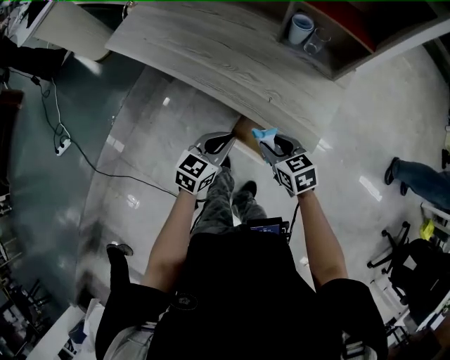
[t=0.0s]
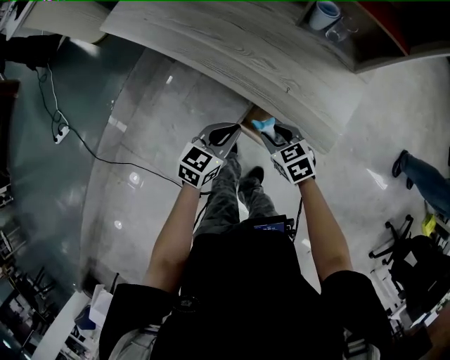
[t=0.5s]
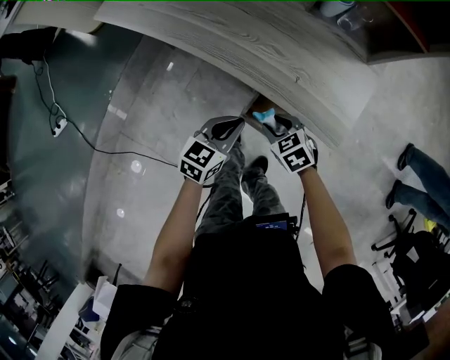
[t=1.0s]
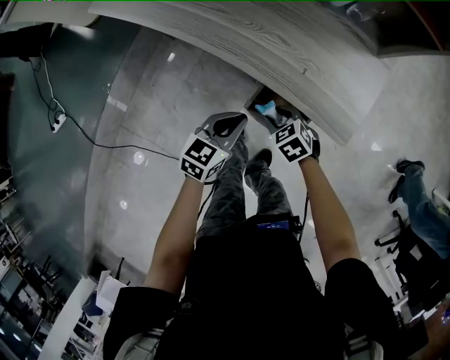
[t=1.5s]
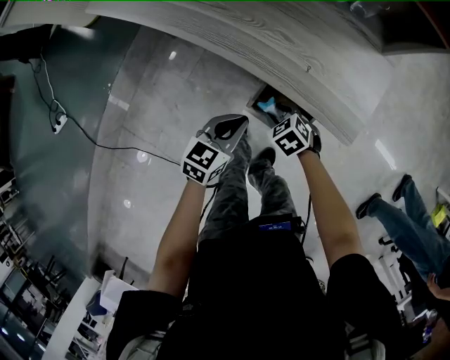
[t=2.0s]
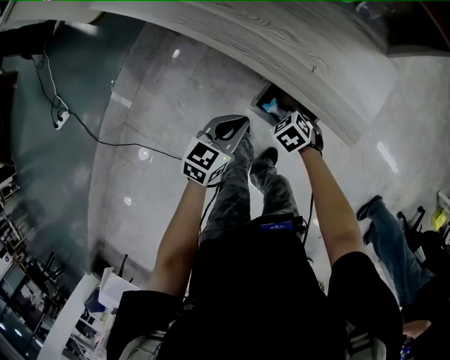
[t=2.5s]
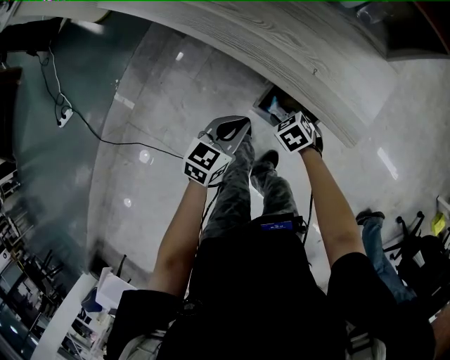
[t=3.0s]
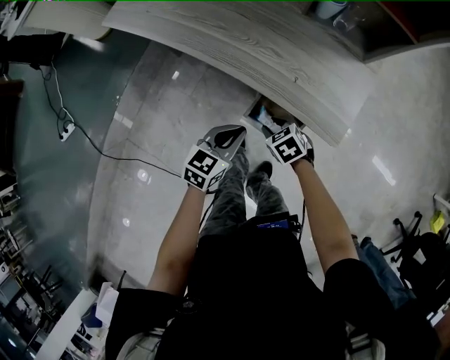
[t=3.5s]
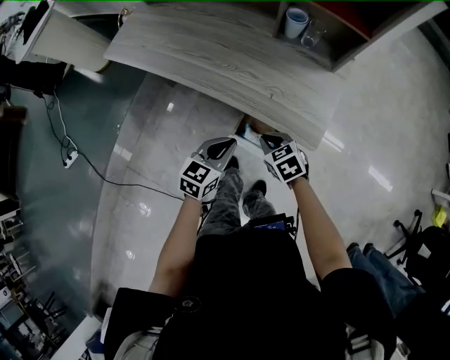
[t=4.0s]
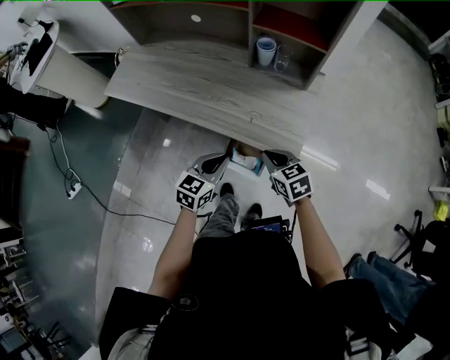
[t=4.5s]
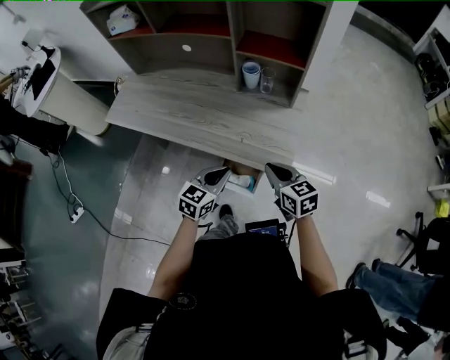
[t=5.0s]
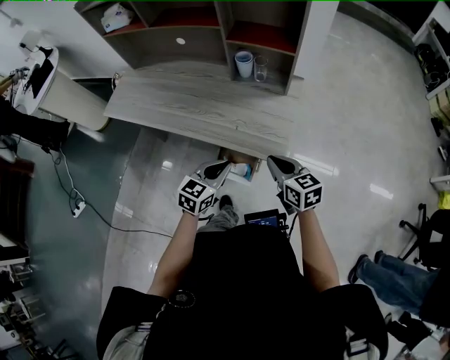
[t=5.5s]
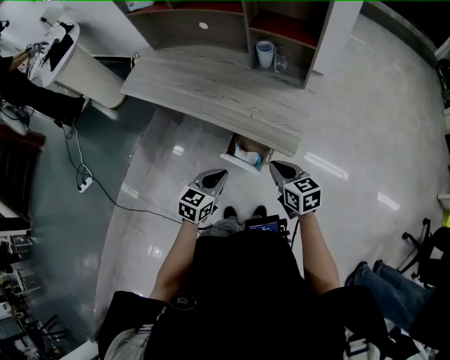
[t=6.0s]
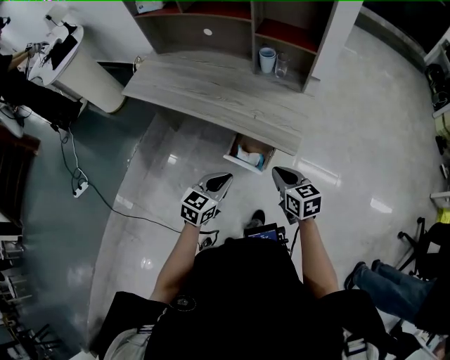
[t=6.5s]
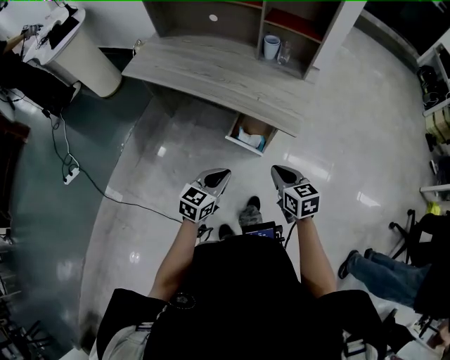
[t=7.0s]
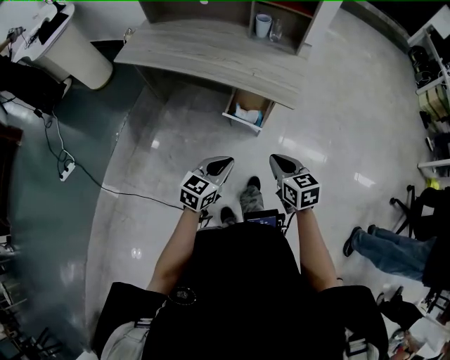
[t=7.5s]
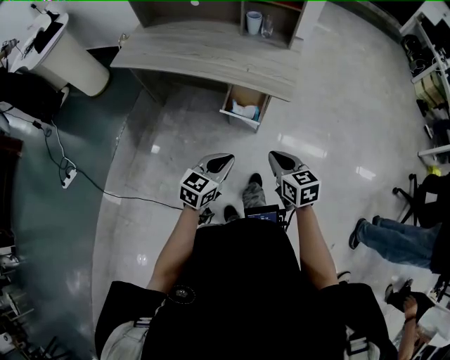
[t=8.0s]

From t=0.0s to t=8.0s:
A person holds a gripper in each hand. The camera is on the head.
From t=0.0s to t=2.0s: The right gripper shifts about 20 cm downward, and rotates about 30 degrees. The left gripper travels downward by some 10 cm.
From t=2.0s to t=4.0s: The left gripper goes approximately 10 cm upward. Meanwhile the right gripper shifts some 15 cm upward, and closes up.
From t=4.0s to t=6.0s: The right gripper goes roughly 15 cm upward, to the right and backward, and turns by roughly 30 degrees. The left gripper travels backward by some 10 cm.
From t=6.0s to t=8.0s: The two grippers go approximately 20 cm backward.

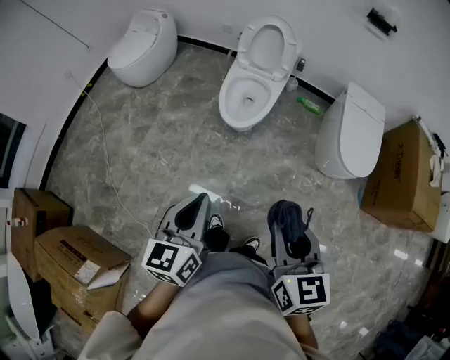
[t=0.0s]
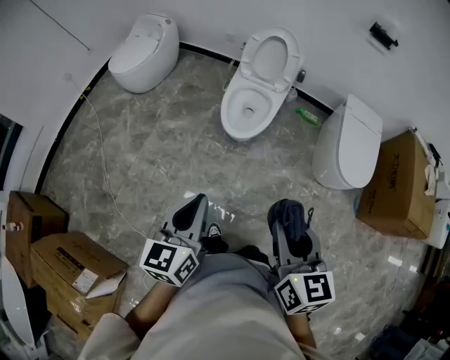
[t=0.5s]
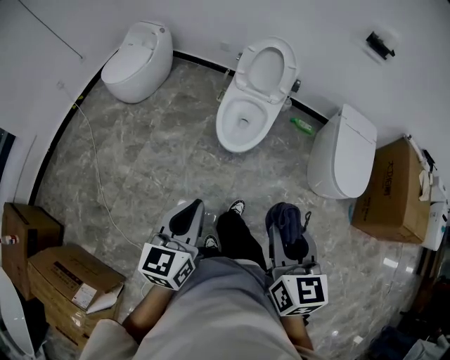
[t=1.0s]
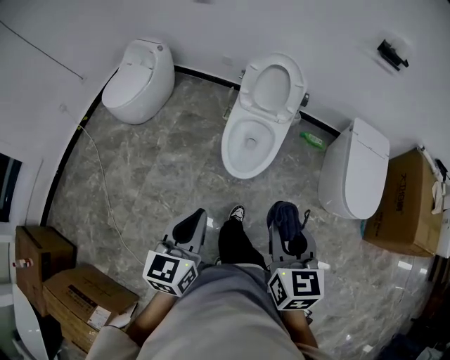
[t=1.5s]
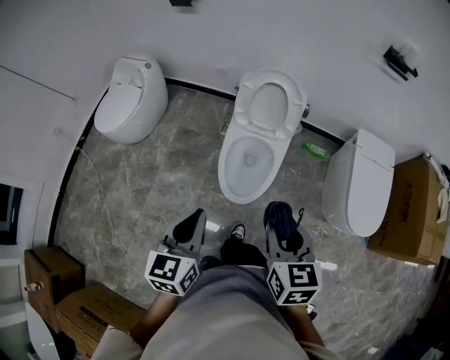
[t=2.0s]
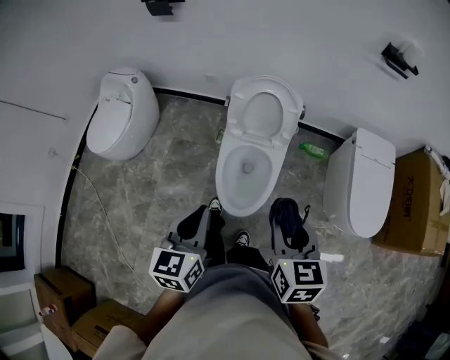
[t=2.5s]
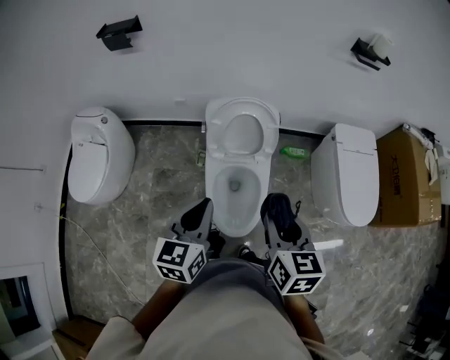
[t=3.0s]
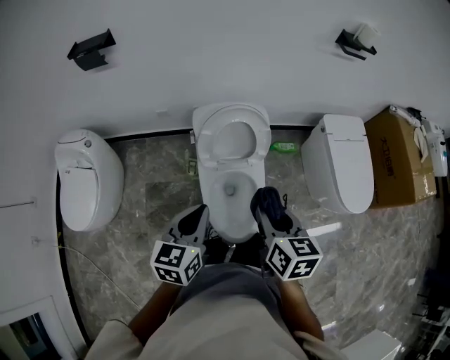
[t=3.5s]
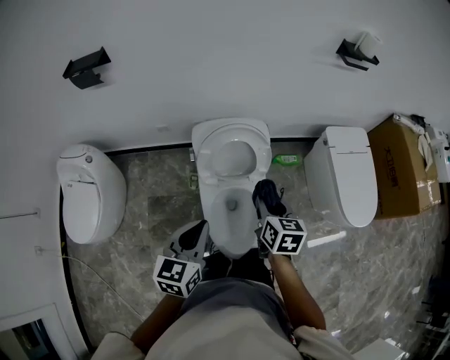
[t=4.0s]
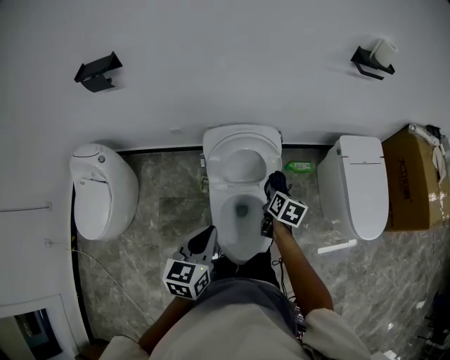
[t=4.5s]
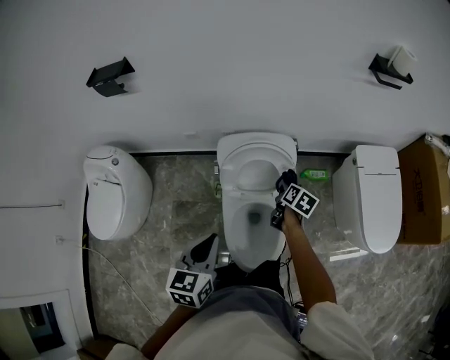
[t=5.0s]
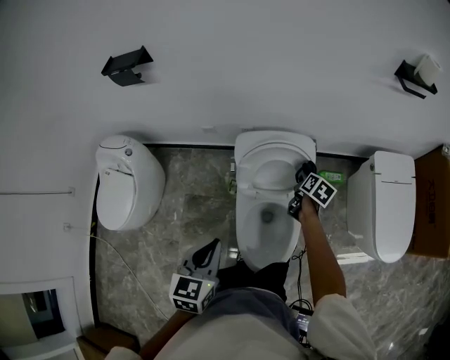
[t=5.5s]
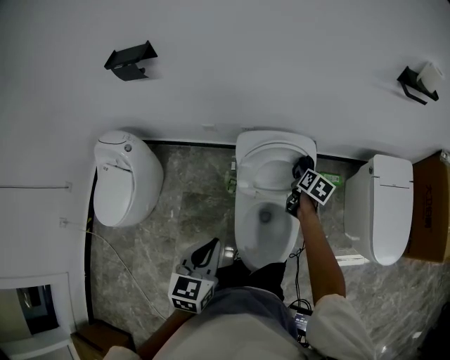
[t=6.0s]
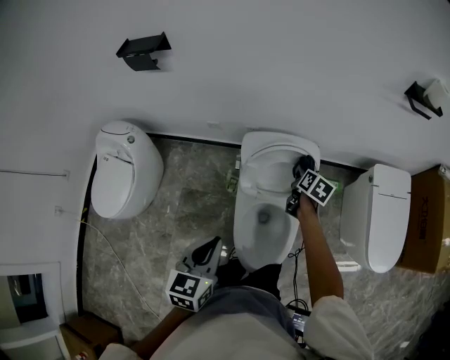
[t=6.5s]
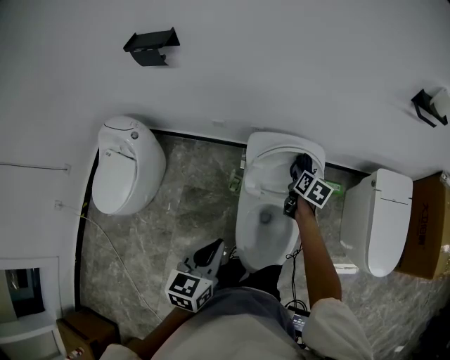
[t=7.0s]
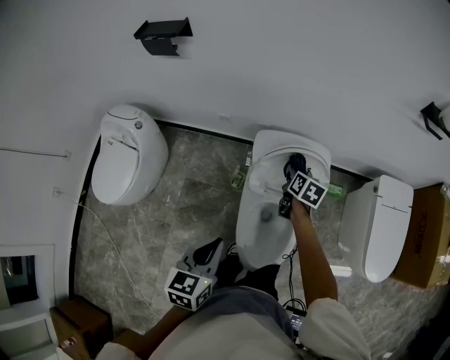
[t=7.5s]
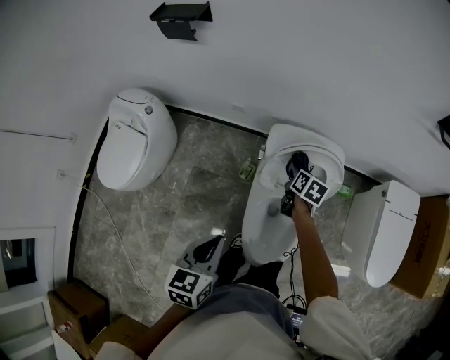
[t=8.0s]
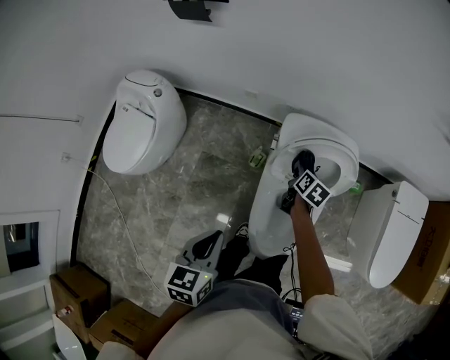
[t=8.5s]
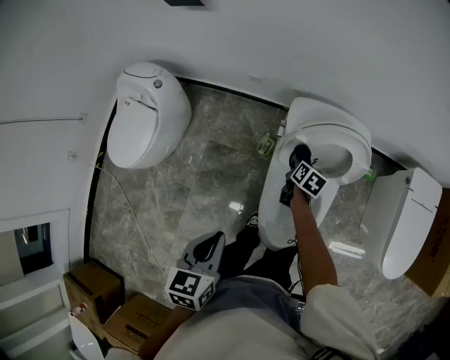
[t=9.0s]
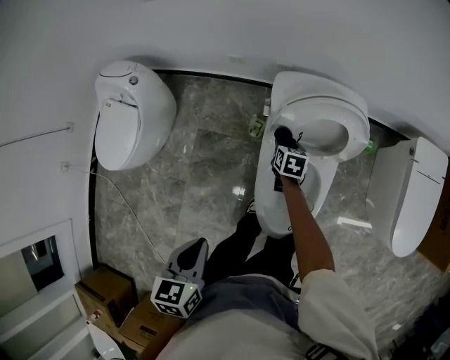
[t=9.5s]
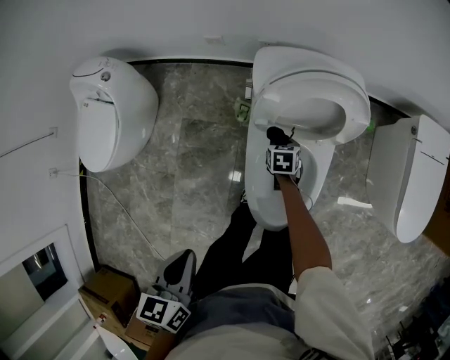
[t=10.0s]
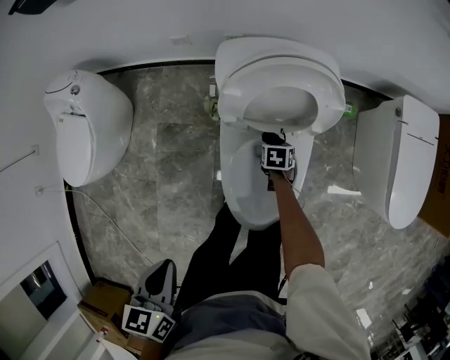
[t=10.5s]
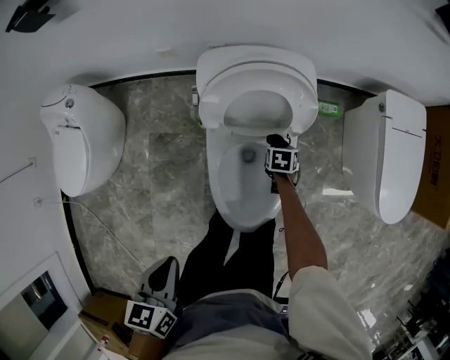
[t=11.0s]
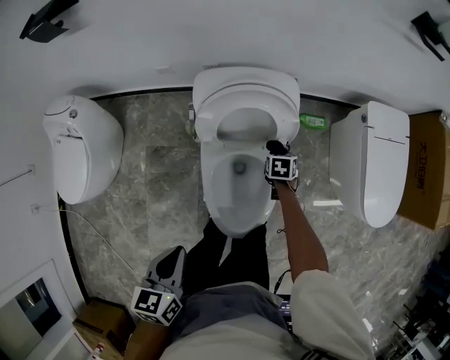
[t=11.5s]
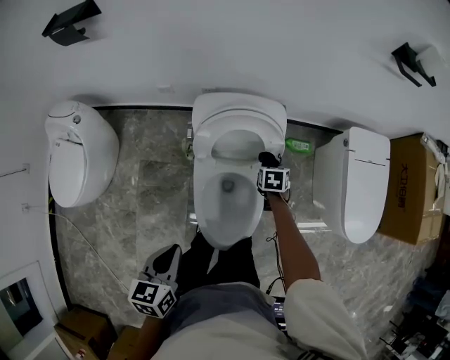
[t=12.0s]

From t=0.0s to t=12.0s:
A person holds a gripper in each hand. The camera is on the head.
From t=0.0s to t=2.0s: The grippers both shift forward by about 40 cm.
From t=2.0s to t=4.0s: The left gripper ends up some 35 cm from where it was, and rotates approximately 30 degrees. The right gripper ends up about 35 cm from where it was, and rotates approximately 30 degrees.
From t=4.0s to t=6.0s: The right gripper is displaced forward and downward by about 25 cm, and swivels roughly 20 degrees. The left gripper changes place by about 5 cm.
From t=6.0s to t=8.0s: The right gripper travels to the left by about 15 cm, while the left gripper moves to the left, roughly 5 cm.
From t=8.0s to t=10.0s: The left gripper moves downward and backward, about 10 cm. Meanwhile the right gripper heads downward, covering roughly 25 cm, and turns by approximately 30 degrees.
From t=10.0s to t=12.0s: The right gripper goes some 25 cm to the right and upward, while the left gripper is displaced to the right and forward by about 10 cm.

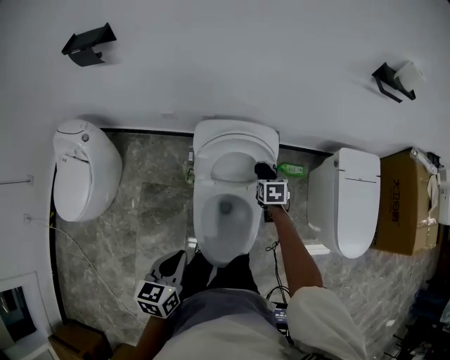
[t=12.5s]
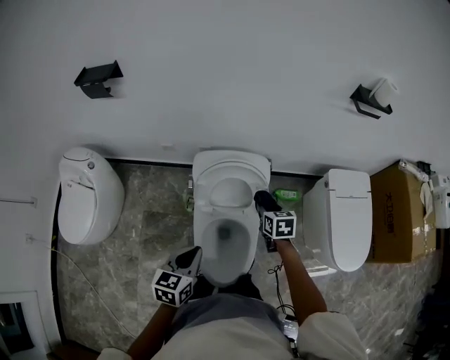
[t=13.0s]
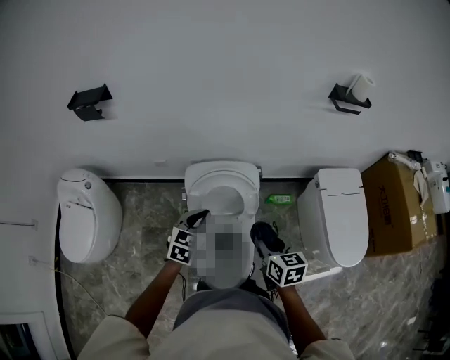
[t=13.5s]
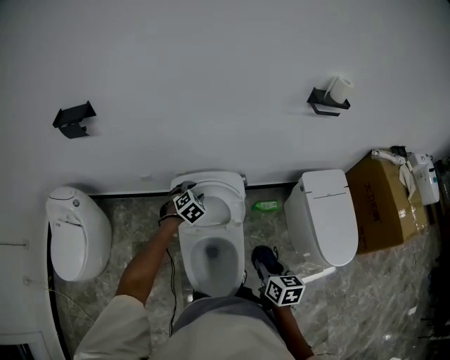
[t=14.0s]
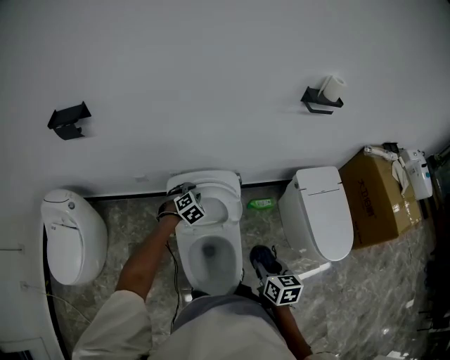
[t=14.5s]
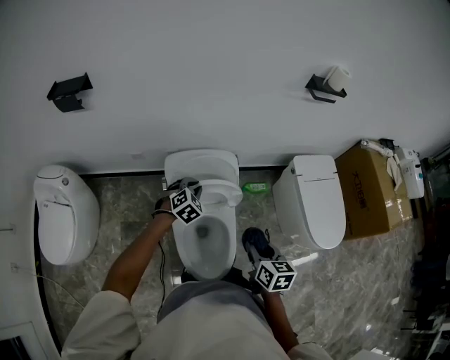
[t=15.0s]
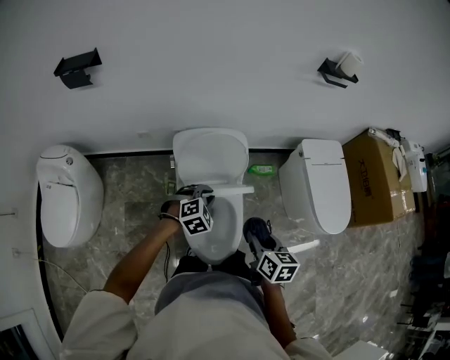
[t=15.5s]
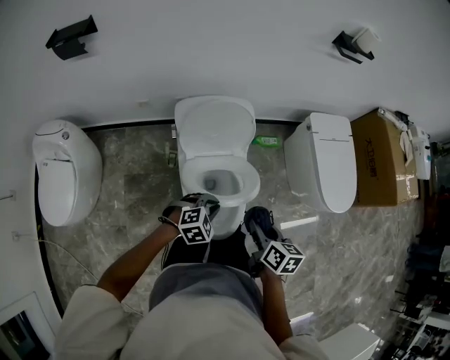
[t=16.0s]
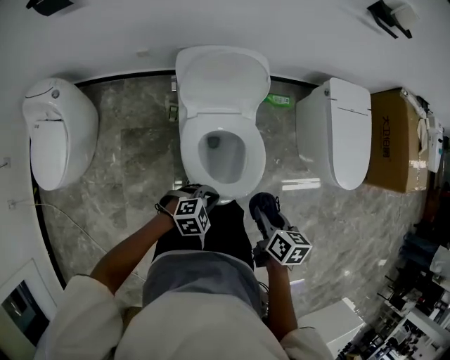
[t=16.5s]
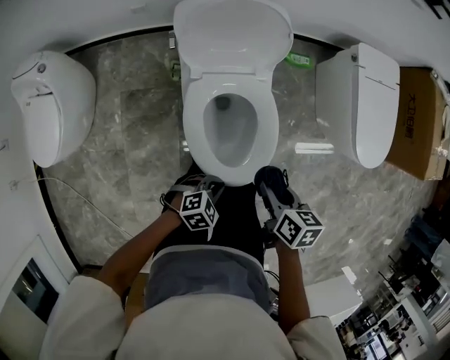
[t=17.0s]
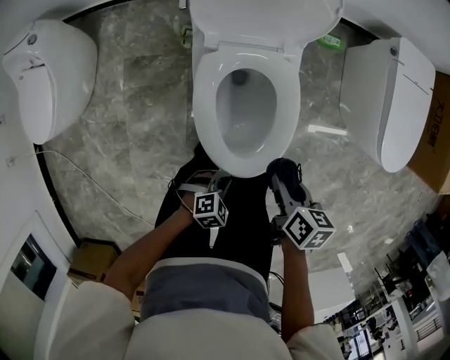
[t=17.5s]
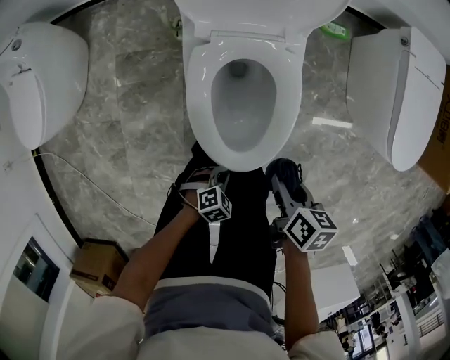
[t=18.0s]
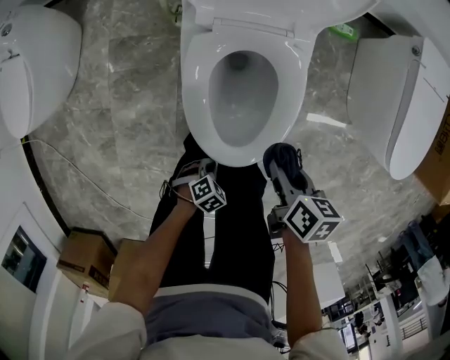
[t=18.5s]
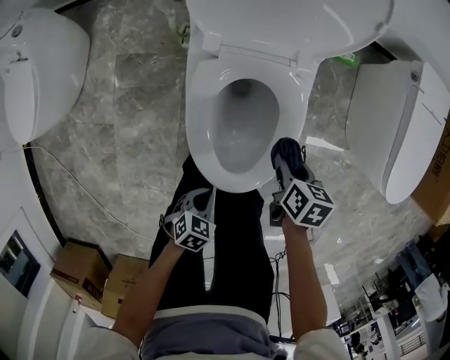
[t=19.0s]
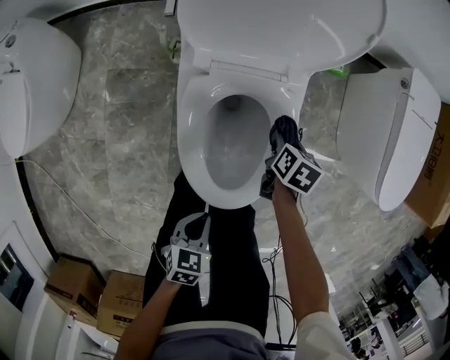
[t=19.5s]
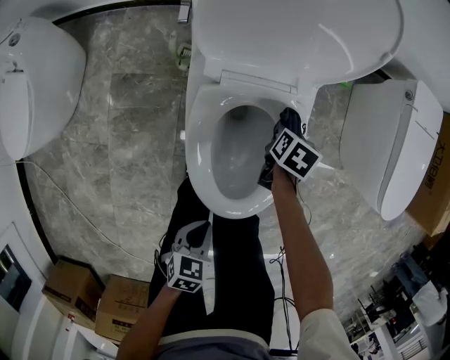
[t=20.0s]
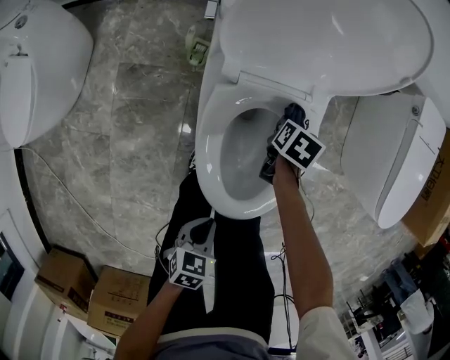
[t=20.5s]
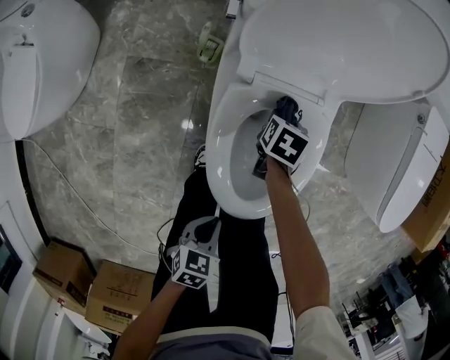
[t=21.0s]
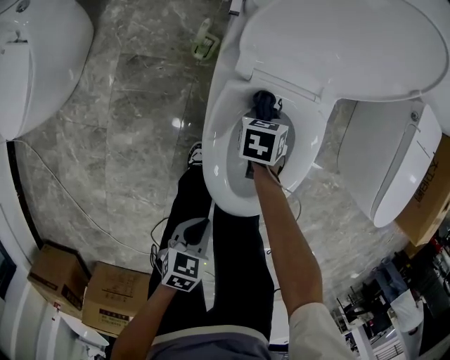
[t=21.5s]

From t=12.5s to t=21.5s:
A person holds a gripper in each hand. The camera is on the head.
From t=12.5s to t=14.5s: The left gripper shifts roughly 35 cm forward, twists some 70 degrees clockwise, seen from behind, and opens up; the right gripper shifts roughly 30 cm backward and upward, and rotates approximately 30 degrees.
From t=14.5s to t=17.0s: The right gripper heads downward, covering about 15 cm, and swivels roughly 30 degrees, while the left gripper ends up some 50 cm from where it was, rotates approximately 40 degrees, and closes its fingers.
From t=17.0s to t=19.5s: The left gripper goes approximately 10 cm downward, and rolls counterclockwise, seen from behind, by about 50 degrees. Meanwhile the right gripper travels downward by approximately 30 cm.
From t=19.5s to t=21.5s: The left gripper travels to the left by approximately 5 cm. Meanwhile the right gripper heads to the left, covering some 20 cm, and changes its angle by roughly 30 degrees.
